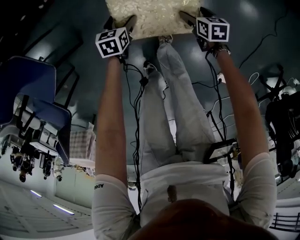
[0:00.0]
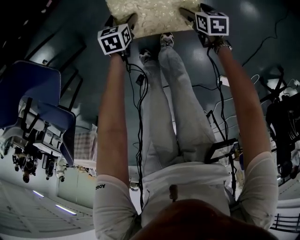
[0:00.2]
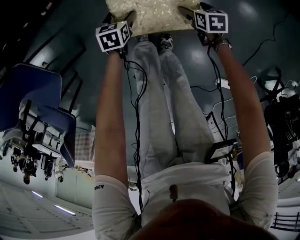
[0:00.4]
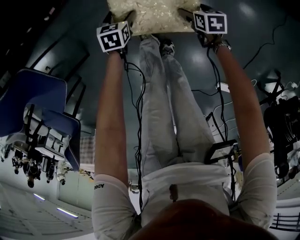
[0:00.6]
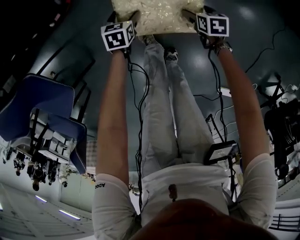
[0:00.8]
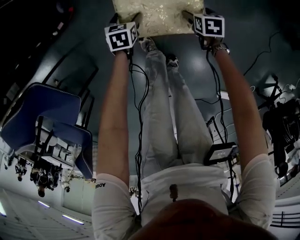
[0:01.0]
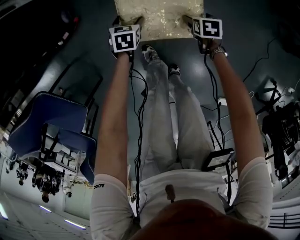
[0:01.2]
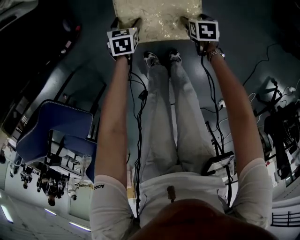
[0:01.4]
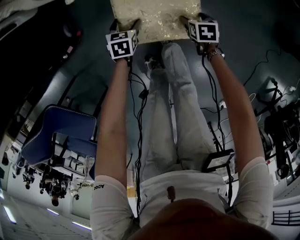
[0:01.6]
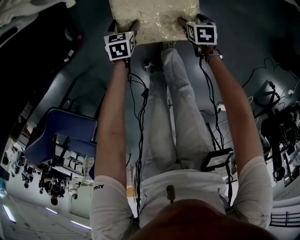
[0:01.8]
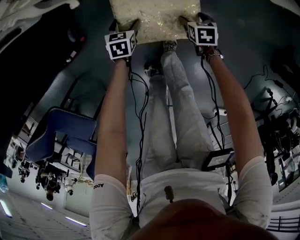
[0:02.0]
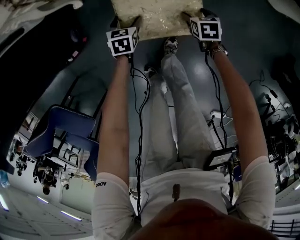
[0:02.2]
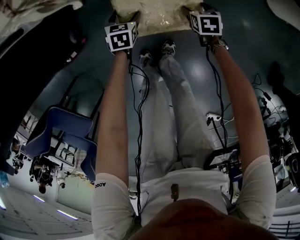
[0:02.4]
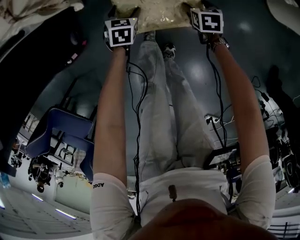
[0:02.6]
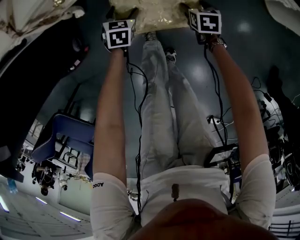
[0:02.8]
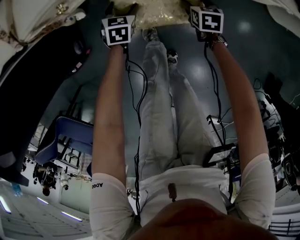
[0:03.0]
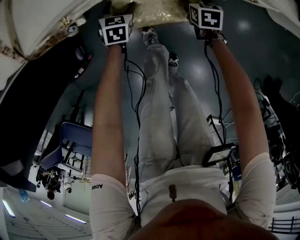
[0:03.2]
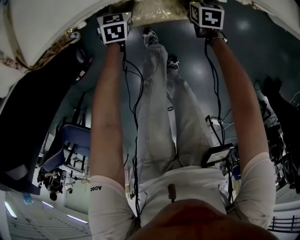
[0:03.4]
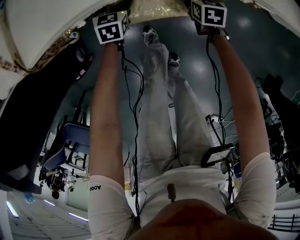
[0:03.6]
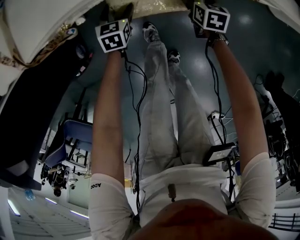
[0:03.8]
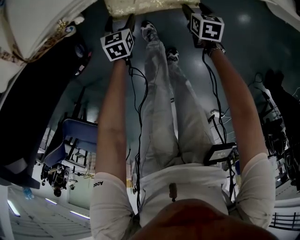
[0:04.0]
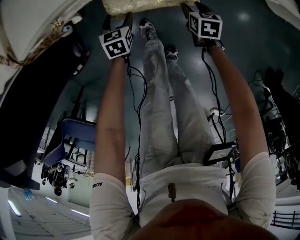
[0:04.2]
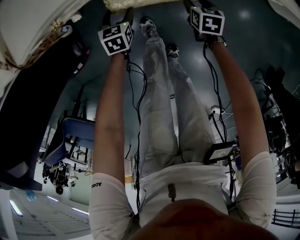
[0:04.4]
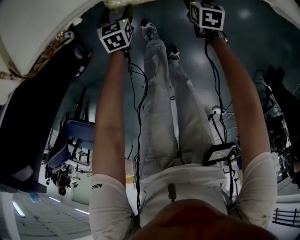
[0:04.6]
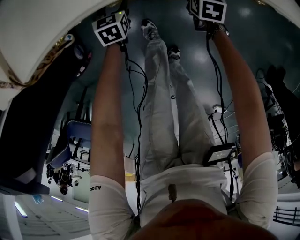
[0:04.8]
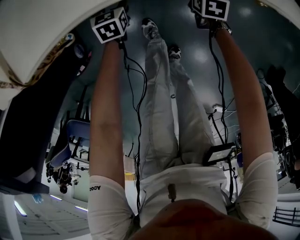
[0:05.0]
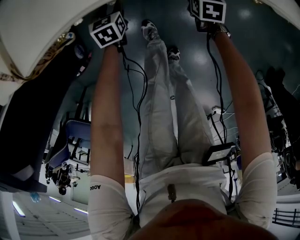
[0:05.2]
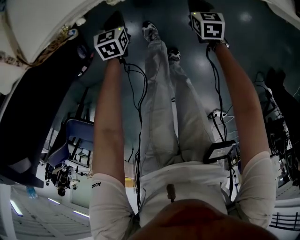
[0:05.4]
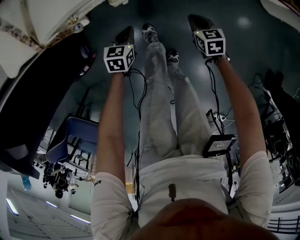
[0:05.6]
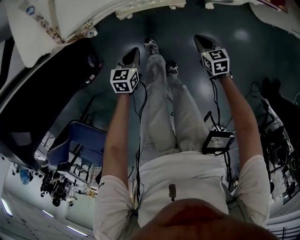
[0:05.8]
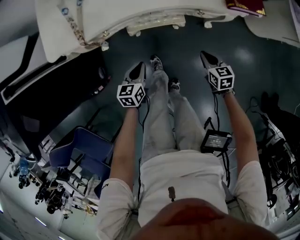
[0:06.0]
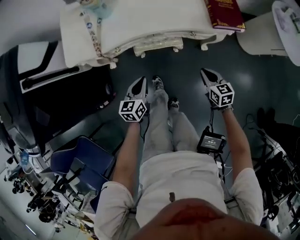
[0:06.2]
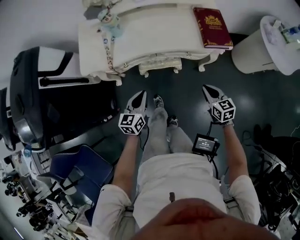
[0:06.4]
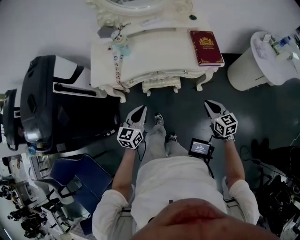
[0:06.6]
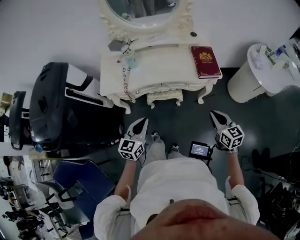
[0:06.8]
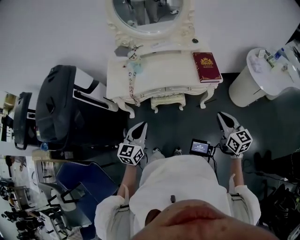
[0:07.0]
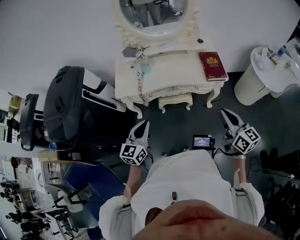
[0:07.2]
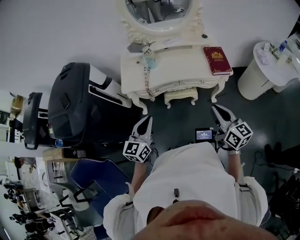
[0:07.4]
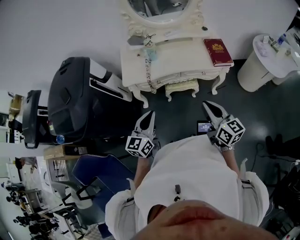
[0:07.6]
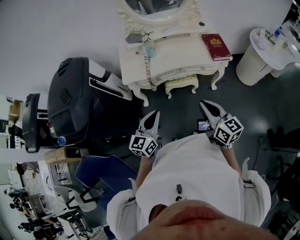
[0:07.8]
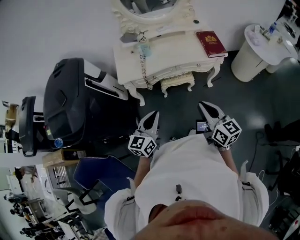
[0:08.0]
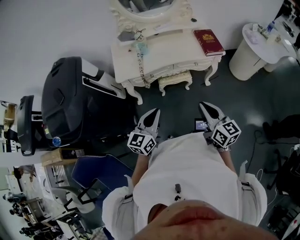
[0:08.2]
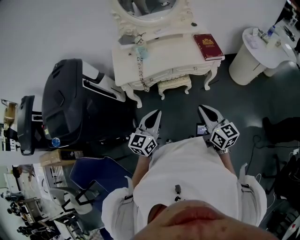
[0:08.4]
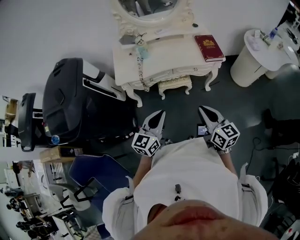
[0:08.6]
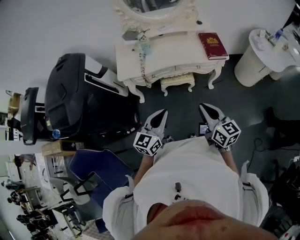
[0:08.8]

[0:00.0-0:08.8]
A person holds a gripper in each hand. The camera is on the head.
0:00.0 to 0:01.4: The left gripper ends up roughly 35 cm from where it was. Meanwhile the right gripper changes place by about 35 cm.
0:01.4 to 0:03.0: The two grippers go about 35 cm forward.
0:03.0 to 0:04.4: The left gripper moves about 10 cm forward and comes back; the right gripper reaches approximately 5 cm forward, then returns.
0:04.4 to 0:05.8: The two grippers go some 15 cm upward and backward. The right gripper closes up, while the left gripper closes up.
0:05.8 to 0:07.4: The two grippers go roughly 60 cm upward. The right gripper angles its fingers upward, by approximately 50 degrees; the left gripper angles its fingers upward, by approximately 40 degrees.
0:07.4 to 0:08.8: The left gripper shifts some 10 cm to the right and backward; the right gripper shifts approximately 5 cm backward.

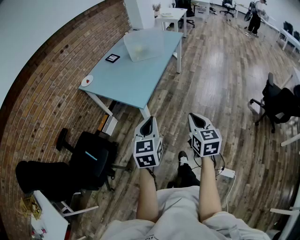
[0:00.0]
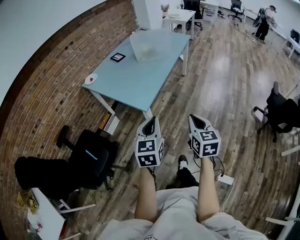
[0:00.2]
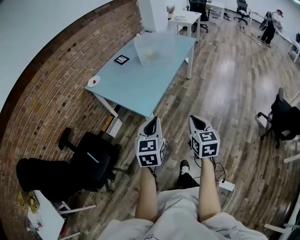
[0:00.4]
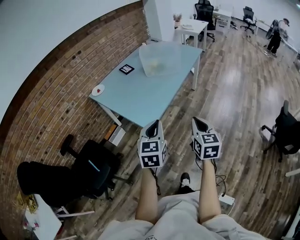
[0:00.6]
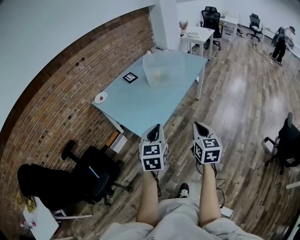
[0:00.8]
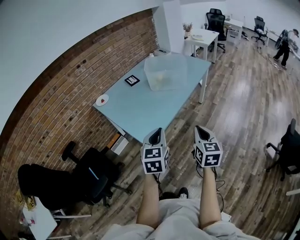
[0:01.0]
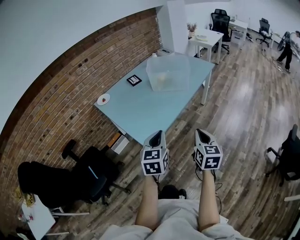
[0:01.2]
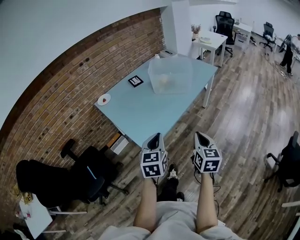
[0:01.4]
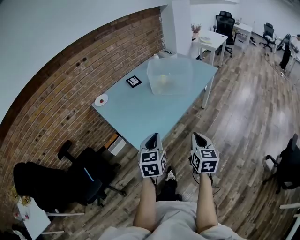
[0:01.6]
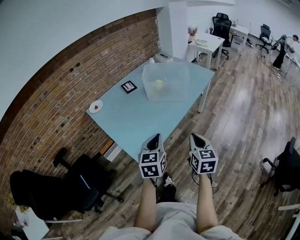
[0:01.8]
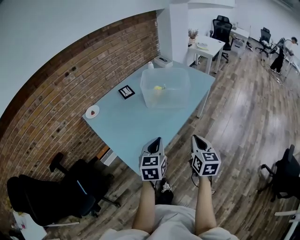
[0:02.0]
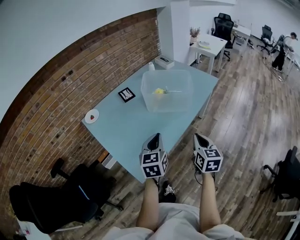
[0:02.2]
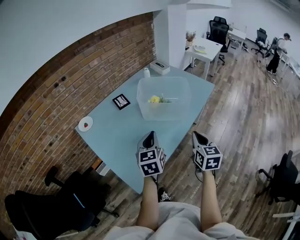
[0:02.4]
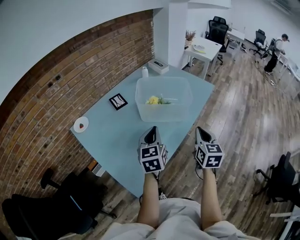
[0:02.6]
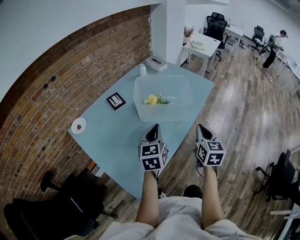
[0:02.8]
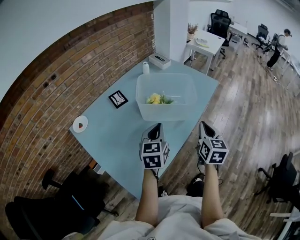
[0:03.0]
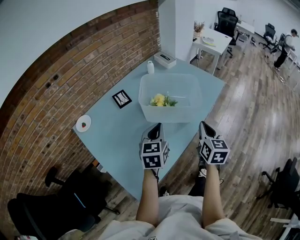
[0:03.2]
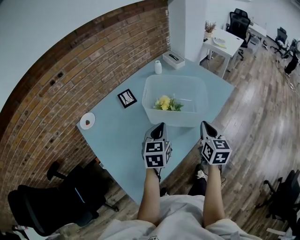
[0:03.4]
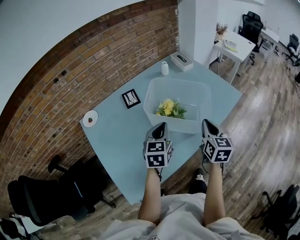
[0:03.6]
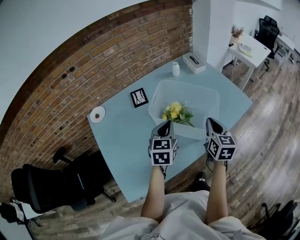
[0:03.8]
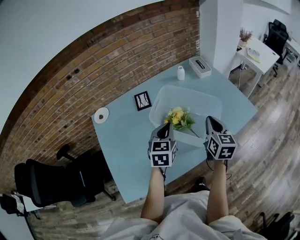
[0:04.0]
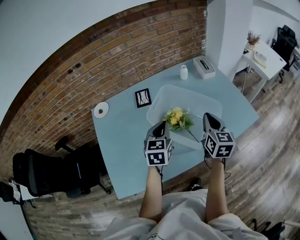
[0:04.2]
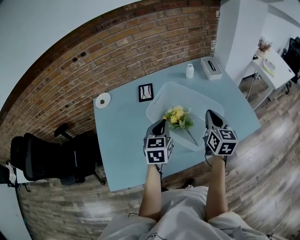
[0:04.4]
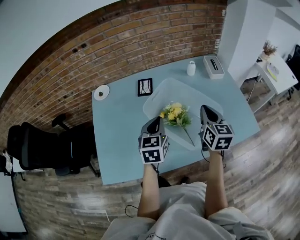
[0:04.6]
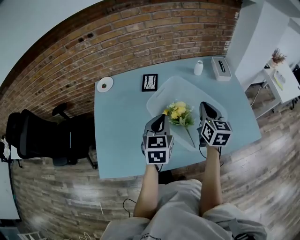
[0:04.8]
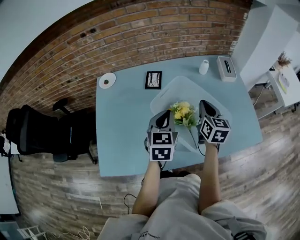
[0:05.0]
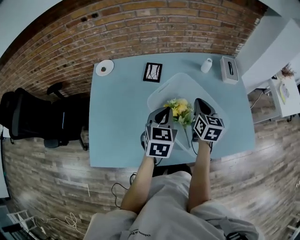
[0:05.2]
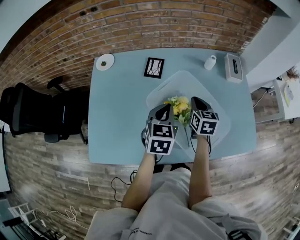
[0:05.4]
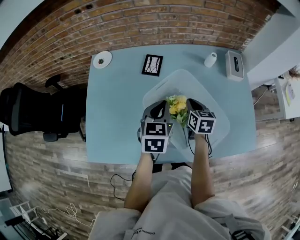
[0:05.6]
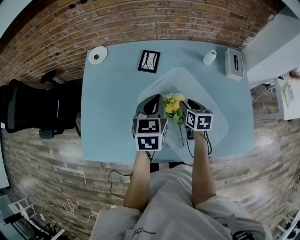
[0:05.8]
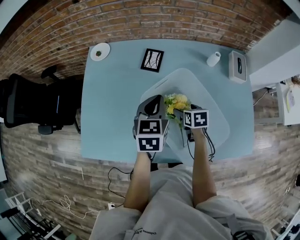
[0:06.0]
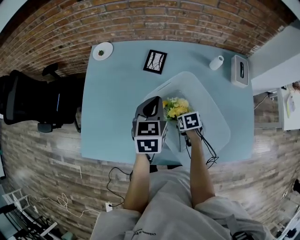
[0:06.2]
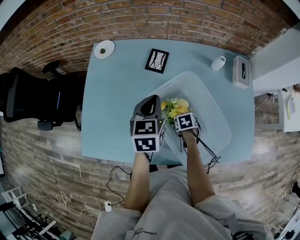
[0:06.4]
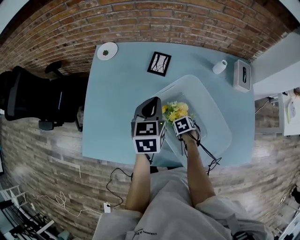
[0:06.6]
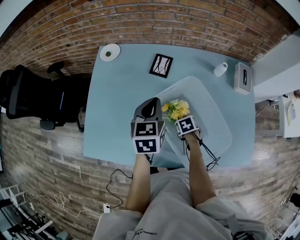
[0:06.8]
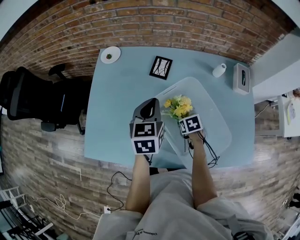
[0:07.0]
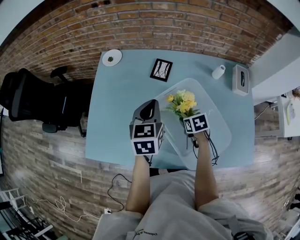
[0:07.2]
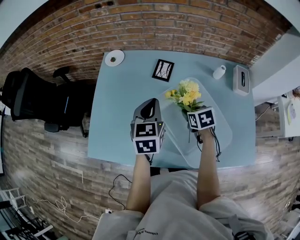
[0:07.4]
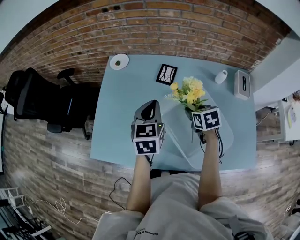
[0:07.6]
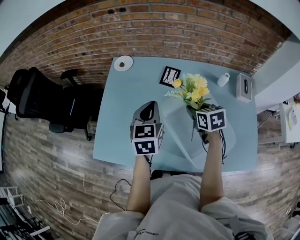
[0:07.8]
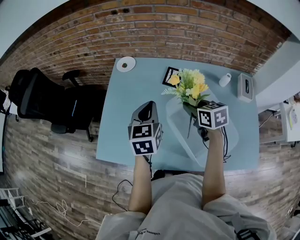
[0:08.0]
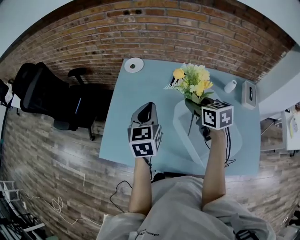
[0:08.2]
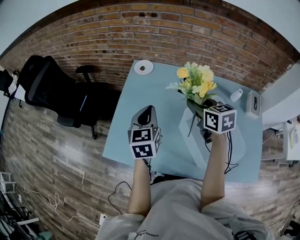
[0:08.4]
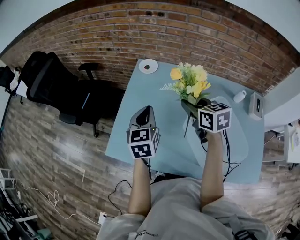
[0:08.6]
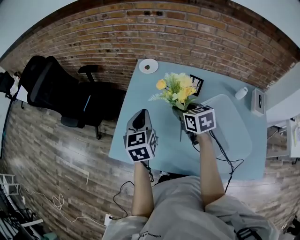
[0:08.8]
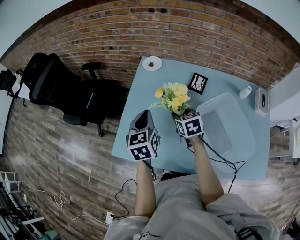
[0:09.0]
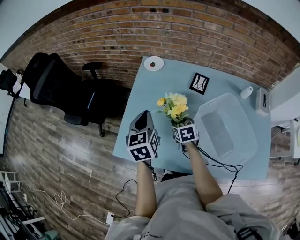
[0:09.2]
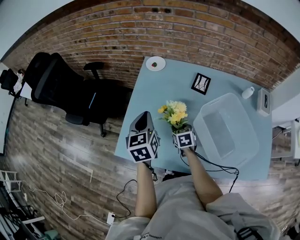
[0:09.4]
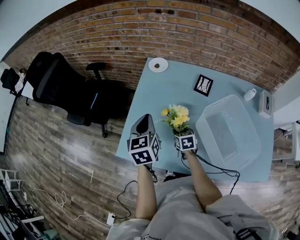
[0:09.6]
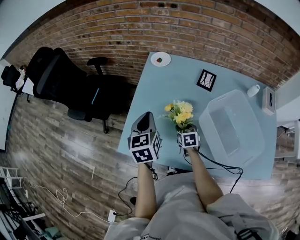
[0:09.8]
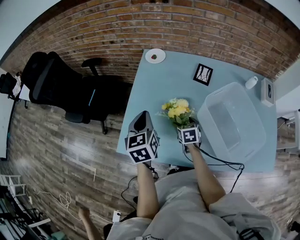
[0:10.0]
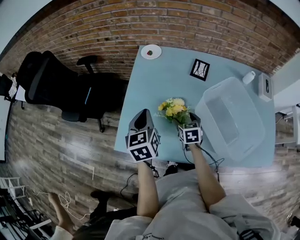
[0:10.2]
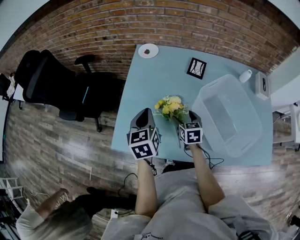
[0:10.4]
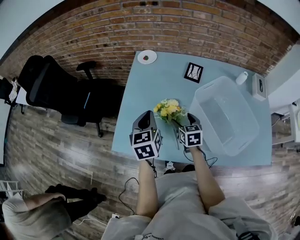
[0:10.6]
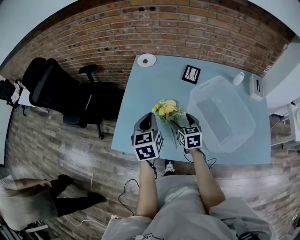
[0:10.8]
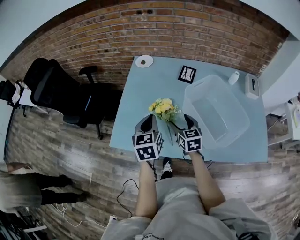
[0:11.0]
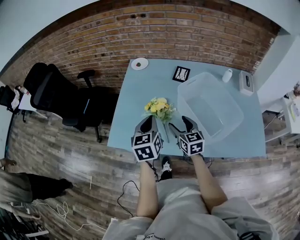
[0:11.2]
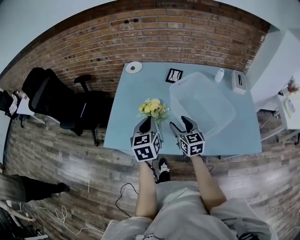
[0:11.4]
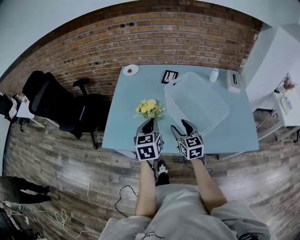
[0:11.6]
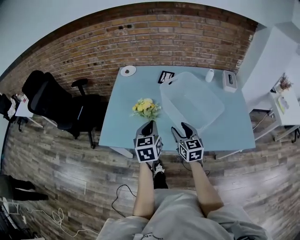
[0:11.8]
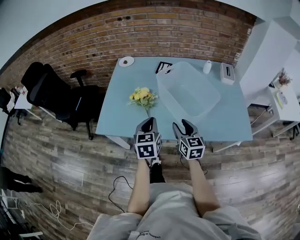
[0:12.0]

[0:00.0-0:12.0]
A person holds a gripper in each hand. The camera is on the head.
0:00.0 to 0:01.6: The grippers both shift forward by some 30 cm.
0:01.6 to 0:03.0: Both grippers travel together forward, about 35 cm.
0:03.0 to 0:04.4: The right gripper shifts by some 30 cm, and swivels approximately 40 degrees. Meanwhile the left gripper ends up approximately 20 cm from where it was, and swivels approximately 30 degrees.
0:04.4 to 0:06.0: The left gripper moves about 10 cm; the right gripper heads downward, covering some 25 cm, angles its fingers downward, by some 40 degrees, and opens.
0:06.0 to 0:07.6: The left gripper moves some 10 cm, while the right gripper is displaced upward by about 10 cm, and closes its fingers.
0:07.6 to 0:09.0: Both grippers travel together to the left, some 25 cm.
0:09.0 to 0:10.4: The right gripper moves downward and backward, some 10 cm, and opens up. Meanwhile the left gripper travels downward by some 5 cm.
0:10.4 to 0:12.0: The left gripper is displaced backward and to the right by roughly 30 cm, while the right gripper travels backward, to the right and upward by about 30 cm, and changes its angle by approximately 20 degrees.

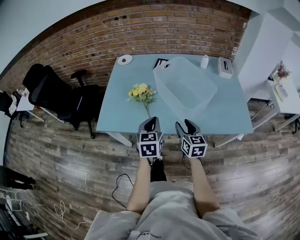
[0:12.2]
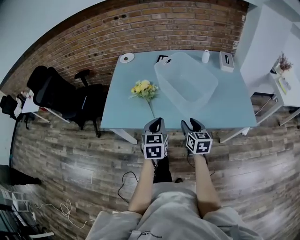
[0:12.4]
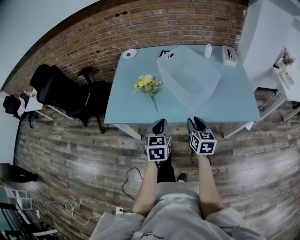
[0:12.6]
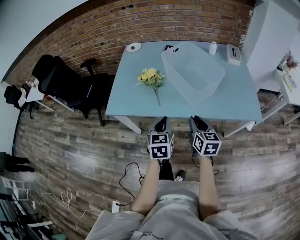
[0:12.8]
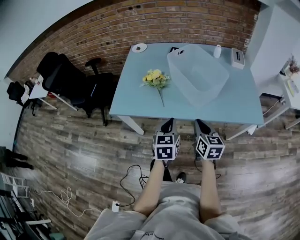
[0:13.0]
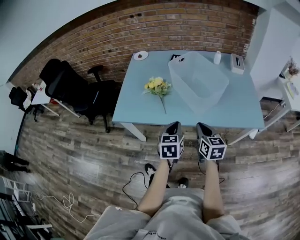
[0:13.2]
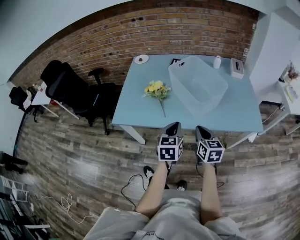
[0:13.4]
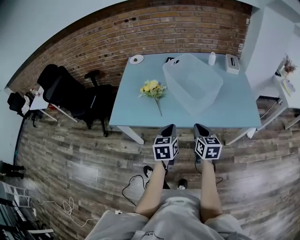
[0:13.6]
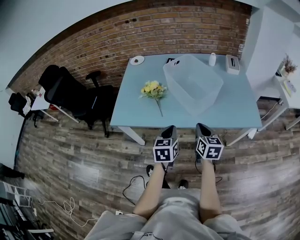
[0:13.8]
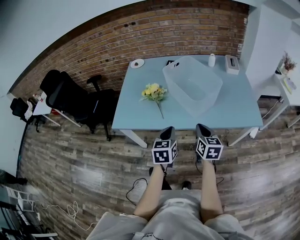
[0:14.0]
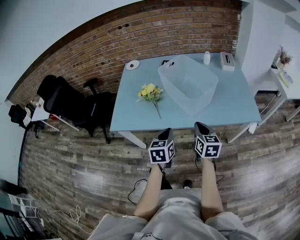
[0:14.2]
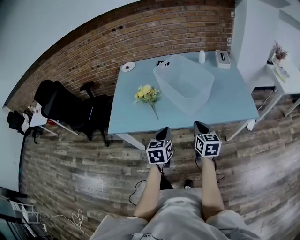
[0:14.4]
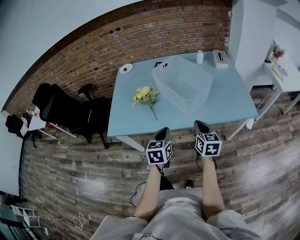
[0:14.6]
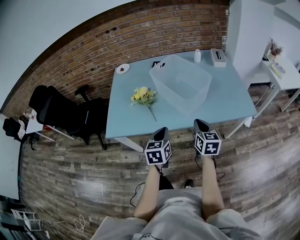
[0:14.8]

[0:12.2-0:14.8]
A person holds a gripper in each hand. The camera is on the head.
0:12.2 to 0:13.4: Both grippers travel together backward, some 10 cm. The right gripper closes up.
0:13.4 to 0:14.8: The grippers move only a little.
